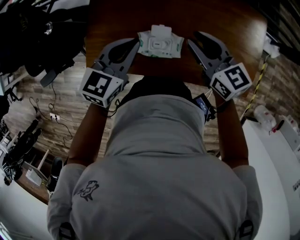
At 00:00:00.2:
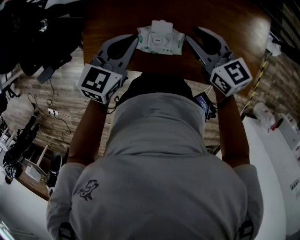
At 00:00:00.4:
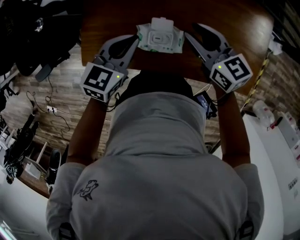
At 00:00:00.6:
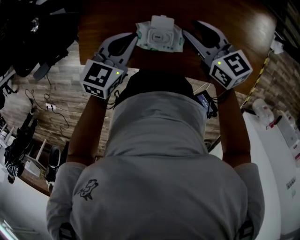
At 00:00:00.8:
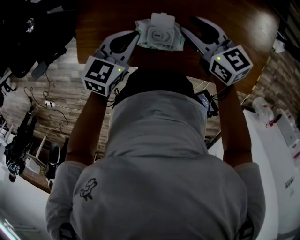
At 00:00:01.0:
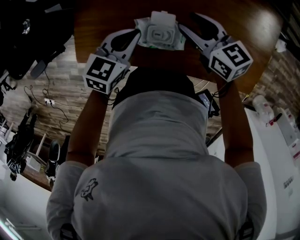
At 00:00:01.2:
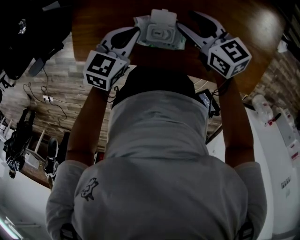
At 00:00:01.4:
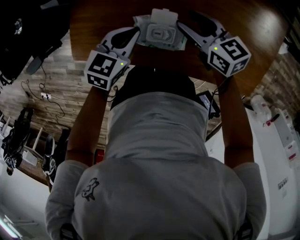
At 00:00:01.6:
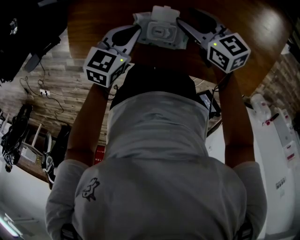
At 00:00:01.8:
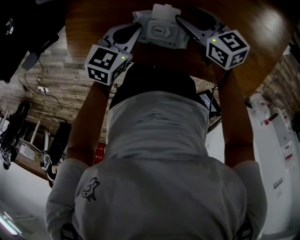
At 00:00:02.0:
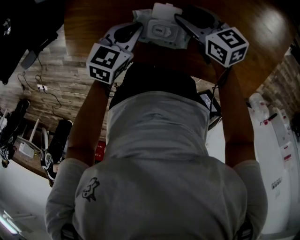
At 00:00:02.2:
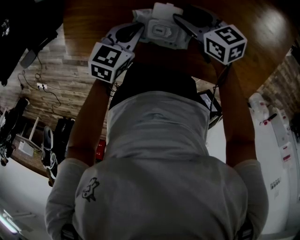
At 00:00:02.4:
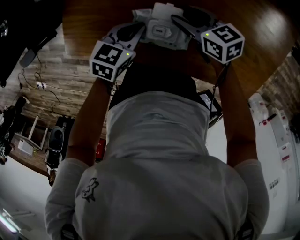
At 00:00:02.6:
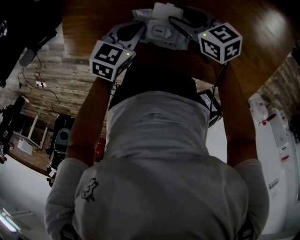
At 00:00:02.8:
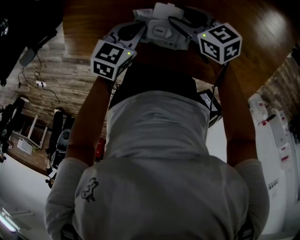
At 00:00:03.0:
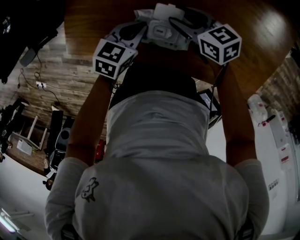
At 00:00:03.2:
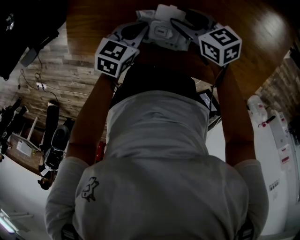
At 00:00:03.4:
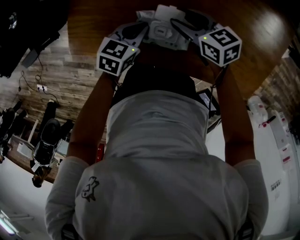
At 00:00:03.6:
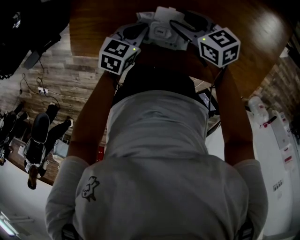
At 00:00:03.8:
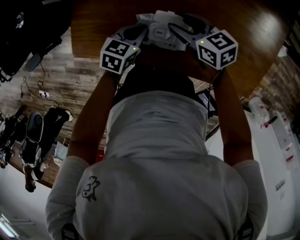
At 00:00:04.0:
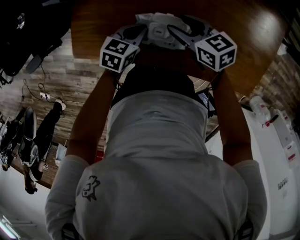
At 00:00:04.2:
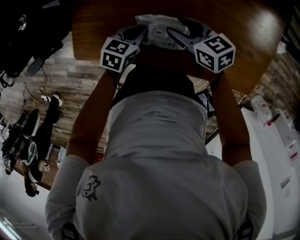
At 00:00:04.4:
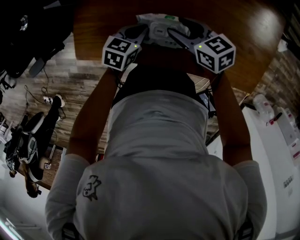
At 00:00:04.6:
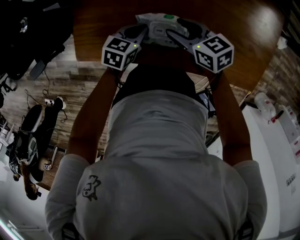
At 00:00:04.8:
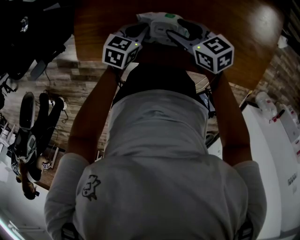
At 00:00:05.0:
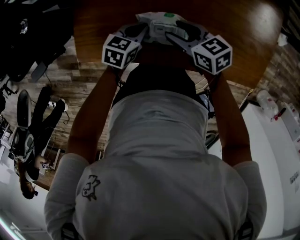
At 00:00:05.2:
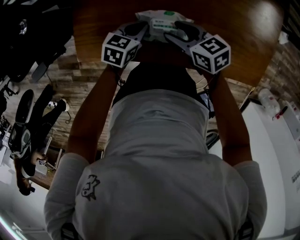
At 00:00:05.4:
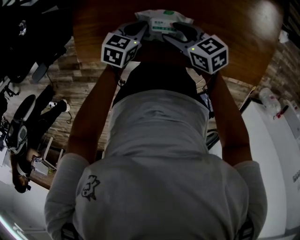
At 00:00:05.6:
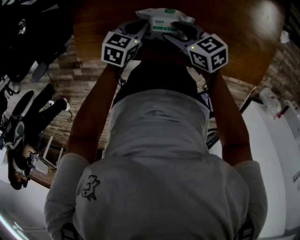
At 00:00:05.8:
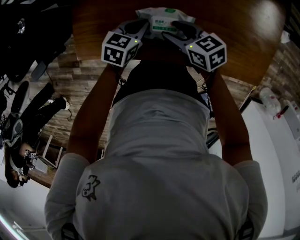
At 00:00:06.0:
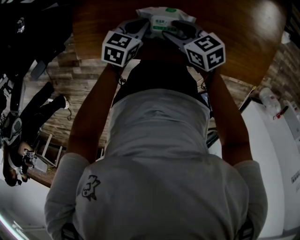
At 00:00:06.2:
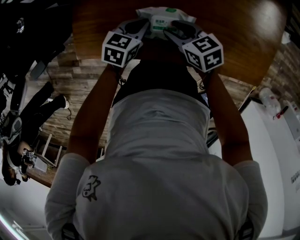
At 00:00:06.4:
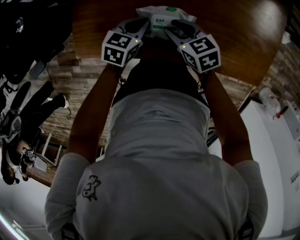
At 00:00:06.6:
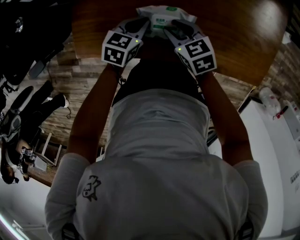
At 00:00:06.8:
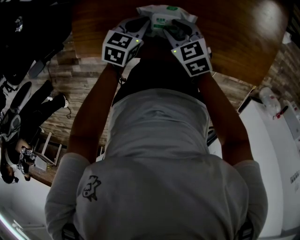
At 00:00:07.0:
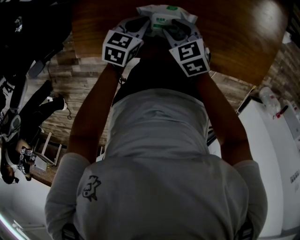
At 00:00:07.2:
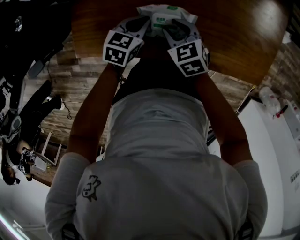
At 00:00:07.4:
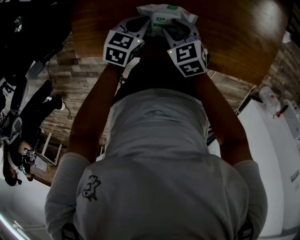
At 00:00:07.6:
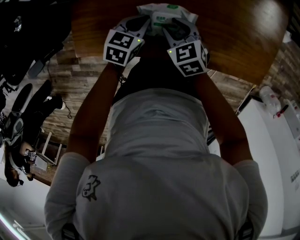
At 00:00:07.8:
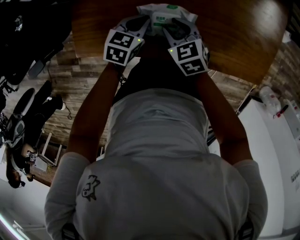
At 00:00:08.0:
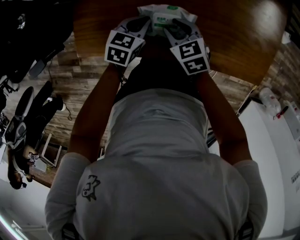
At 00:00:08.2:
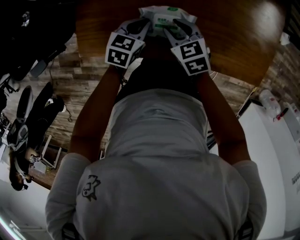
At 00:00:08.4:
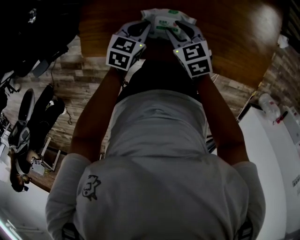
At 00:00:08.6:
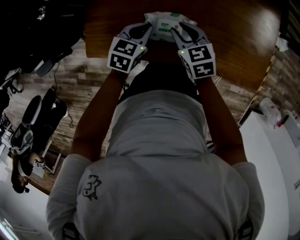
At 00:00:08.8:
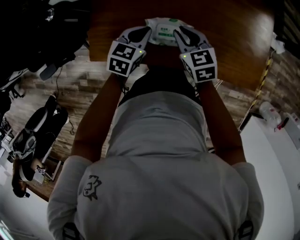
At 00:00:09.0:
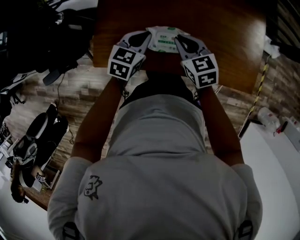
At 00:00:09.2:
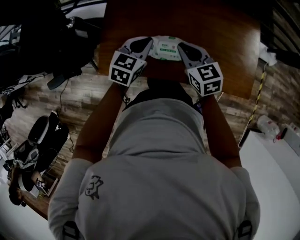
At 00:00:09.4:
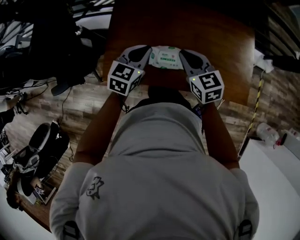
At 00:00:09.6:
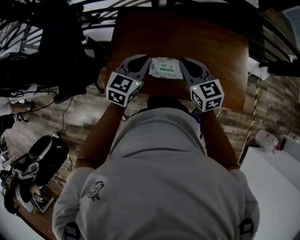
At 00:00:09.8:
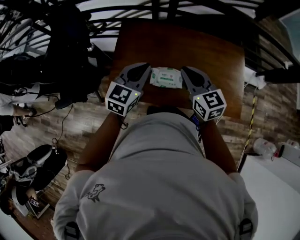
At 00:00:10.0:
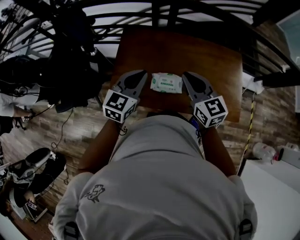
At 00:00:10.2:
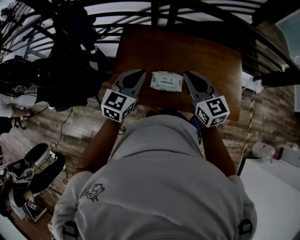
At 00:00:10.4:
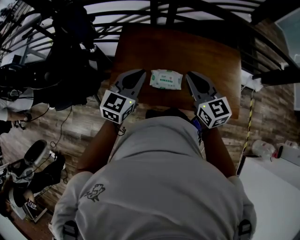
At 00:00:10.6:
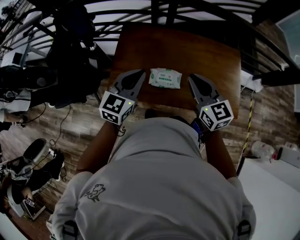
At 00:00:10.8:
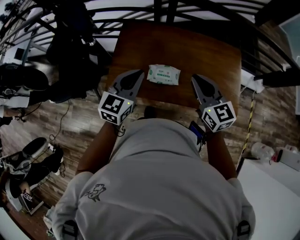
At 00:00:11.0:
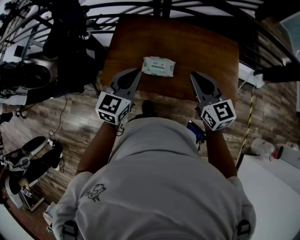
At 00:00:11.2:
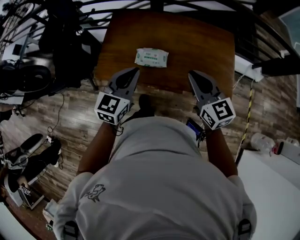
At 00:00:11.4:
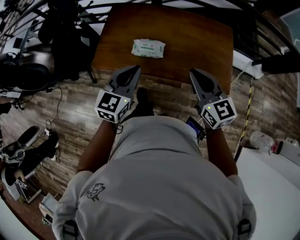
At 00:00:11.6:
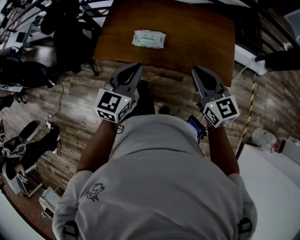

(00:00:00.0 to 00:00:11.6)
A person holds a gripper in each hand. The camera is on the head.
00:00:00.0 - 00:00:01.4: The two grippers go about 15 cm downward. The right gripper opens.
00:00:01.4 - 00:00:02.8: The two grippers go roughly 5 cm downward.
00:00:02.8 - 00:00:04.4: The right gripper is displaced upward by some 5 cm.
00:00:04.4 - 00:00:05.8: The right gripper moves approximately 5 cm.
00:00:05.8 - 00:00:07.2: The right gripper changes its angle by about 30 degrees.
00:00:07.2 - 00:00:08.8: Both grippers move upward, about 10 cm.
00:00:08.8 - 00:00:10.2: The two grippers go some 25 cm upward. The left gripper rotates approximately 30 degrees. Meanwhile the right gripper turns by about 30 degrees.
00:00:10.2 - 00:00:11.6: Both grippers travel together backward and to the right, roughly 30 cm.

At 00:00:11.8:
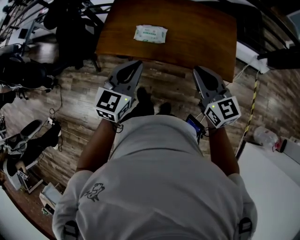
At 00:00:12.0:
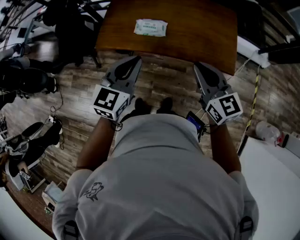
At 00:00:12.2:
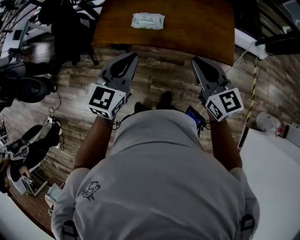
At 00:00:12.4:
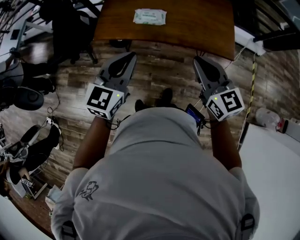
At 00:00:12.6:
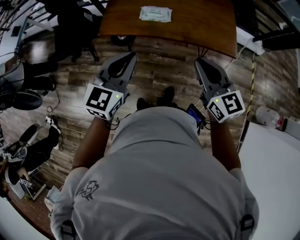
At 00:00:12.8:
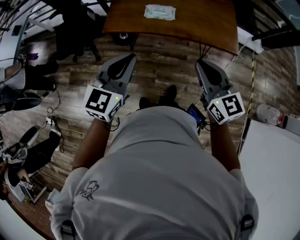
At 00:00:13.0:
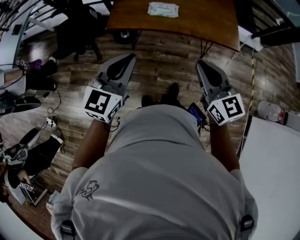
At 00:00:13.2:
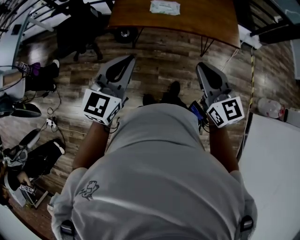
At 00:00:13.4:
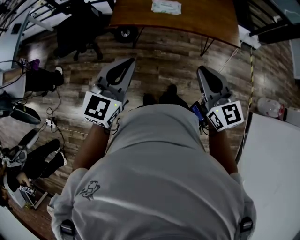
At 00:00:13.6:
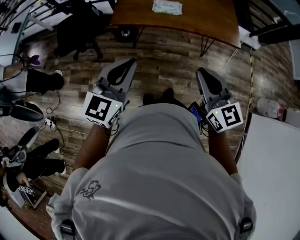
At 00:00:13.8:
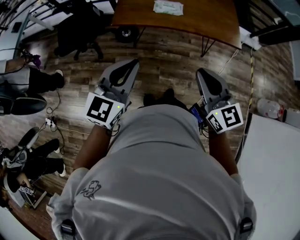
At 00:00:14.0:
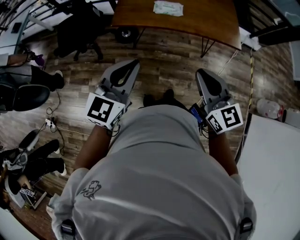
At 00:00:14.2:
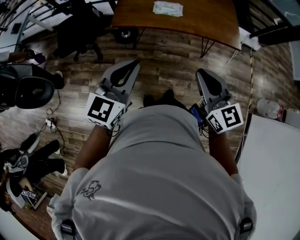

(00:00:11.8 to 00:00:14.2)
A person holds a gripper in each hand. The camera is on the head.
00:00:11.8 - 00:00:13.0: The right gripper moves backward and to the left, some 25 cm, while the left gripper shifts about 25 cm to the left and backward.
00:00:13.0 - 00:00:14.2: The left gripper moves approximately 5 cm. The right gripper is displaced backward and to the left by about 5 cm.

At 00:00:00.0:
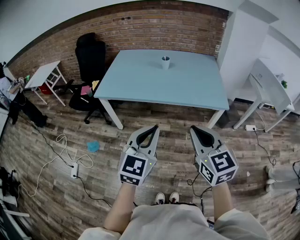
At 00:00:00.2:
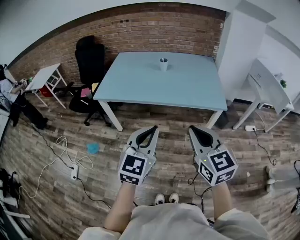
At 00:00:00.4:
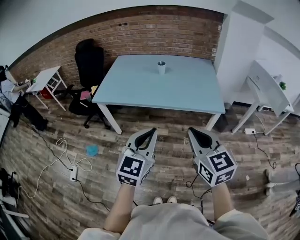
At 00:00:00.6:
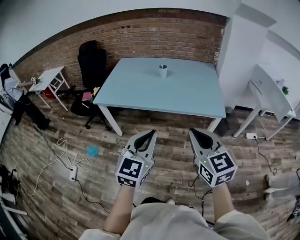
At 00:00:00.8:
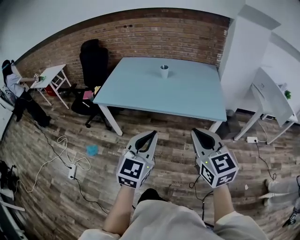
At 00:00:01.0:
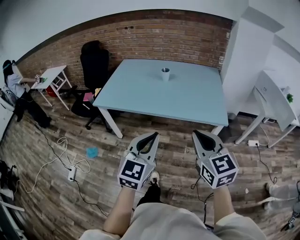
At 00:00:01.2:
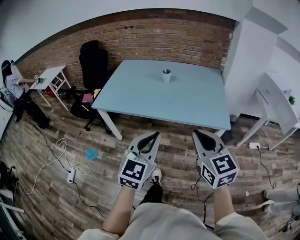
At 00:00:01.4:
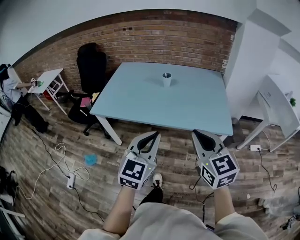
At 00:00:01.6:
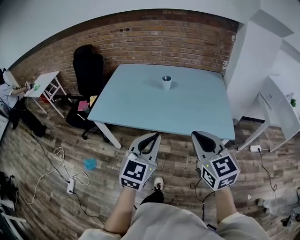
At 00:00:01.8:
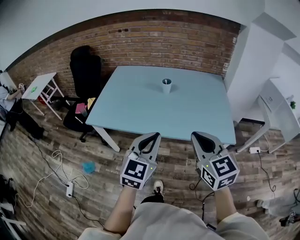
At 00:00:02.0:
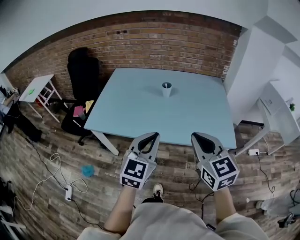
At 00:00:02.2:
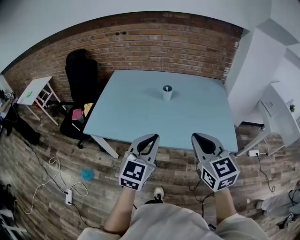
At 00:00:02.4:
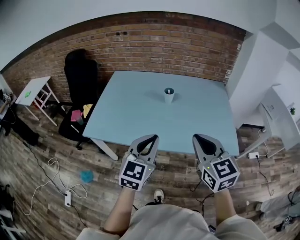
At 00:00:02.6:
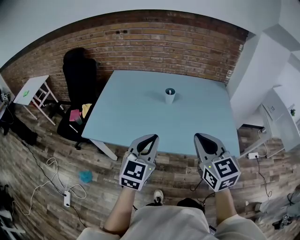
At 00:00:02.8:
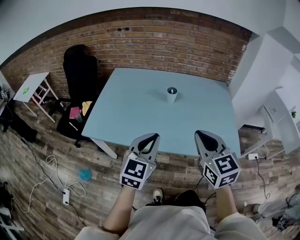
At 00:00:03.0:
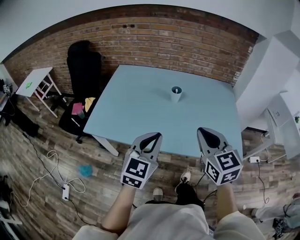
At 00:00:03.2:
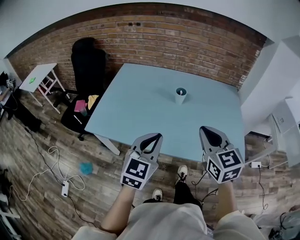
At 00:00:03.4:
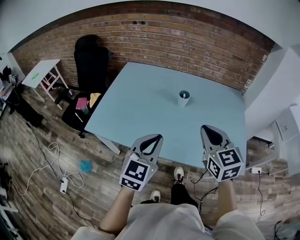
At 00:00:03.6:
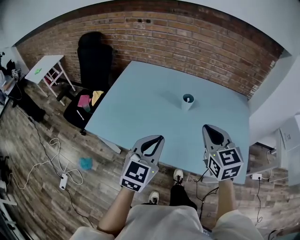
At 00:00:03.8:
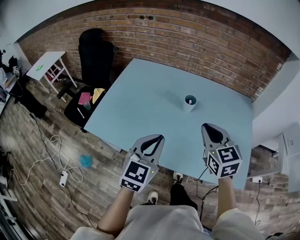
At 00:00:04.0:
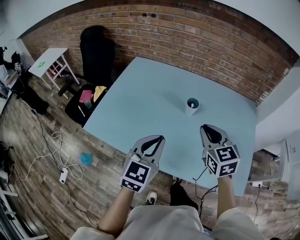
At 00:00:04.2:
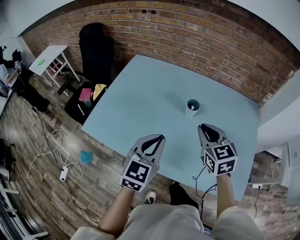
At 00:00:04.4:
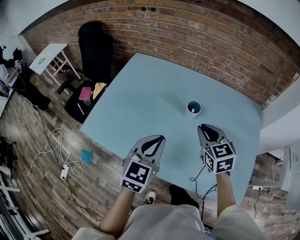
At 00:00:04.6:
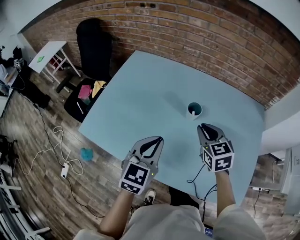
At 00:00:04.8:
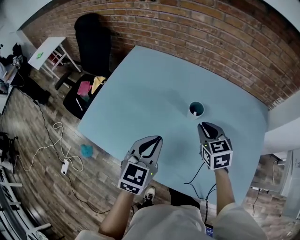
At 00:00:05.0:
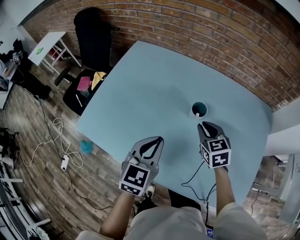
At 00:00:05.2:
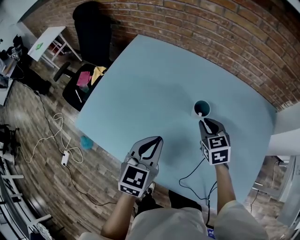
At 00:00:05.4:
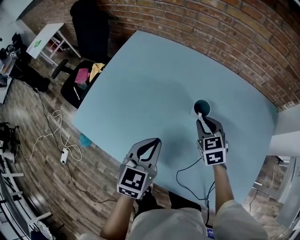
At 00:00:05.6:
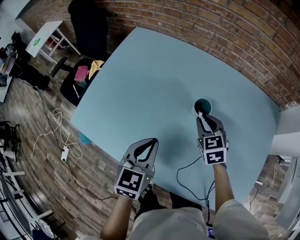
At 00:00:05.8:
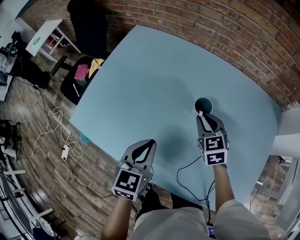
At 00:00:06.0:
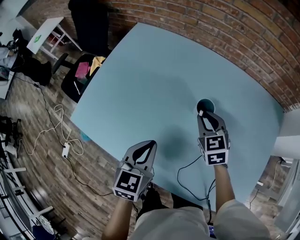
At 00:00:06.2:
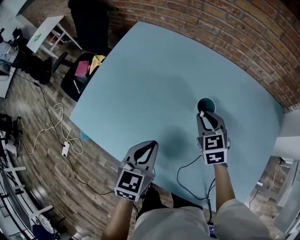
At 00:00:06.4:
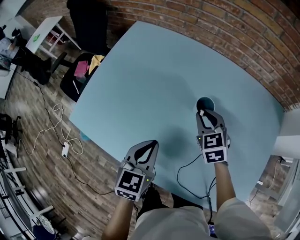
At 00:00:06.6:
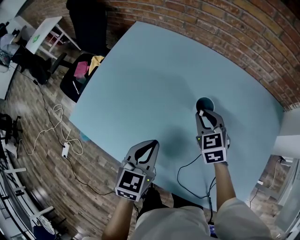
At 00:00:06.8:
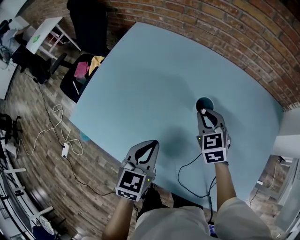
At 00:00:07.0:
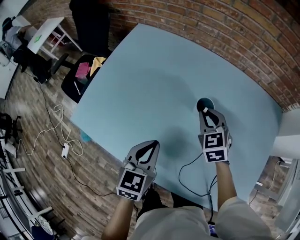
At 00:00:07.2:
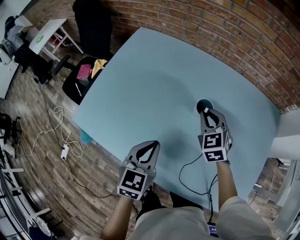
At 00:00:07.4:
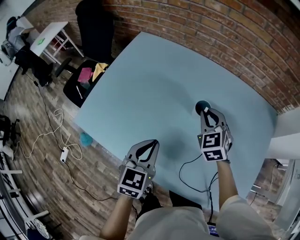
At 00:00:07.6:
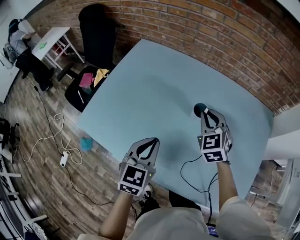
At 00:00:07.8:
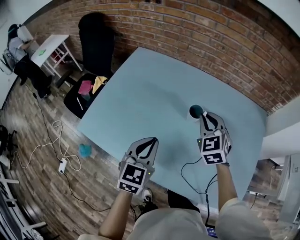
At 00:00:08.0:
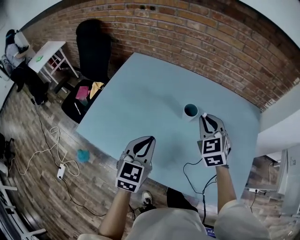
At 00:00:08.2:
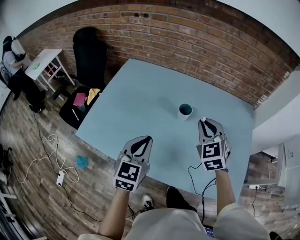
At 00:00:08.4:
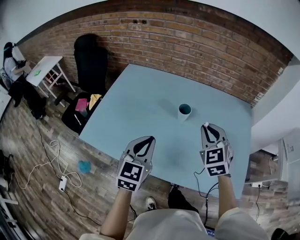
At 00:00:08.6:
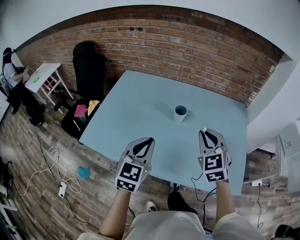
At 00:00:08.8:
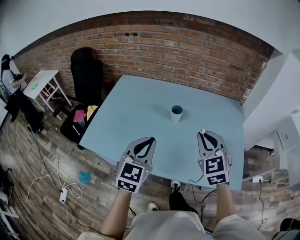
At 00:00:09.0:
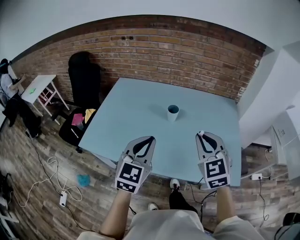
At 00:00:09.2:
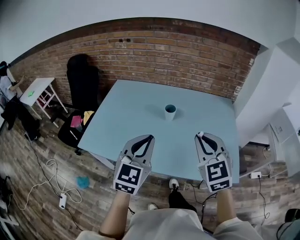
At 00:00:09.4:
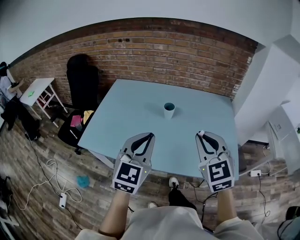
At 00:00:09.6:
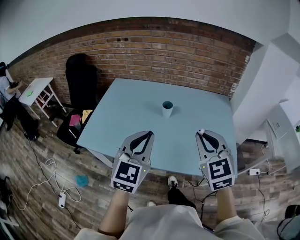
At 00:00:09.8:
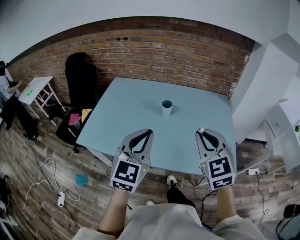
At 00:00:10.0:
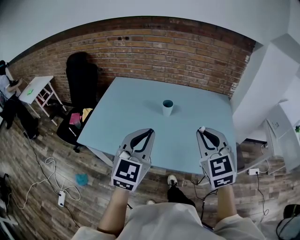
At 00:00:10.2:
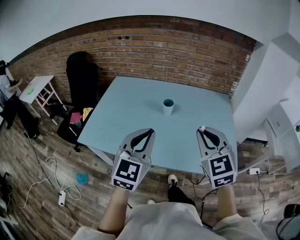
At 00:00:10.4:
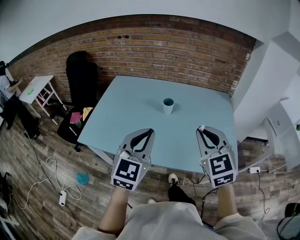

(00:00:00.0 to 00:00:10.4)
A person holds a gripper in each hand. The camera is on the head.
00:00:00.0 - 00:00:01.4: Both grippers move forward, approximately 15 cm.
00:00:01.4 - 00:00:03.0: The two grippers go approximately 25 cm forward.
00:00:03.0 - 00:00:04.4: The left gripper heads forward, covering about 20 cm. Meanwhile the right gripper moves forward and downward, roughly 30 cm.
00:00:04.4 - 00:00:06.0: Both grippers travel together downward and forward, roughly 15 cm. The left gripper swivels roughly 20 degrees.
00:00:06.0 - 00:00:07.4: The right gripper heads upward, covering approximately 5 cm.
00:00:07.4 - 00:00:09.0: The left gripper is displaced upward and backward by roughly 25 cm, and turns by approximately 30 degrees, while the right gripper travels backward and upward by roughly 35 cm.
00:00:09.0 - 00:00:10.4: Both grippers travel together backward, some 5 cm.
